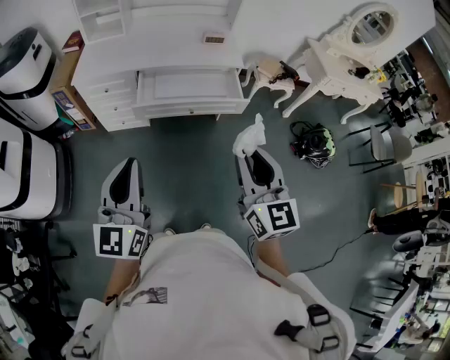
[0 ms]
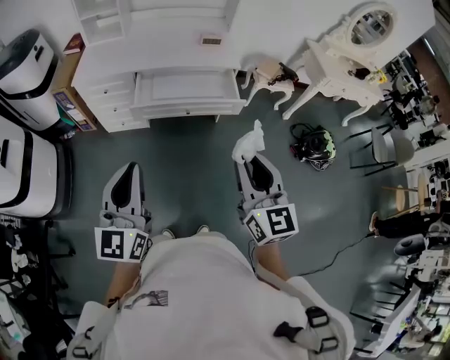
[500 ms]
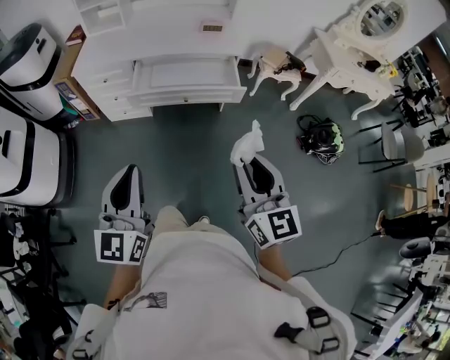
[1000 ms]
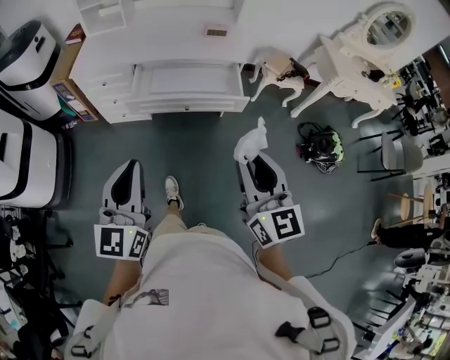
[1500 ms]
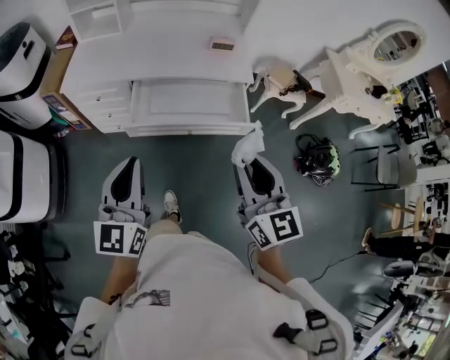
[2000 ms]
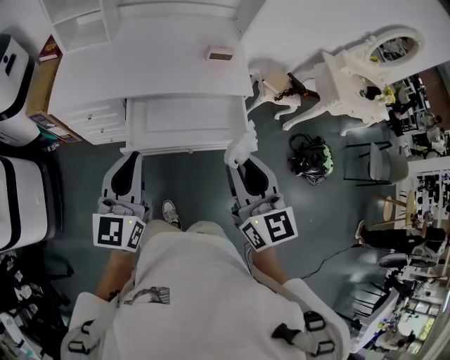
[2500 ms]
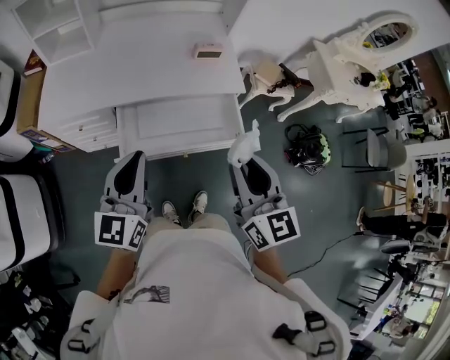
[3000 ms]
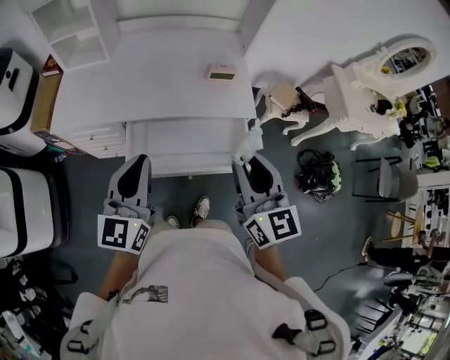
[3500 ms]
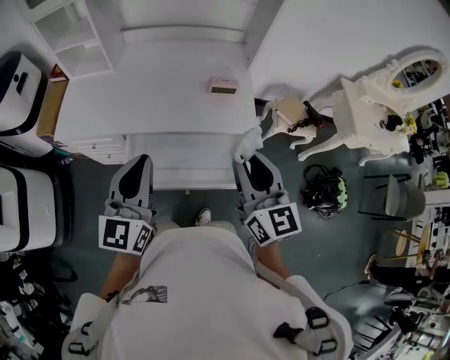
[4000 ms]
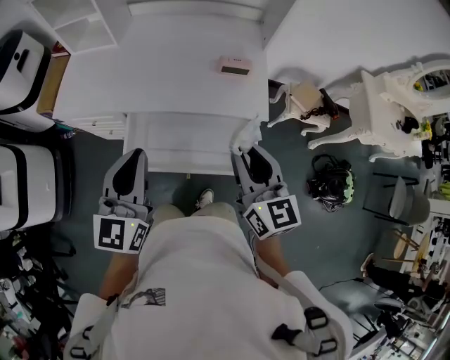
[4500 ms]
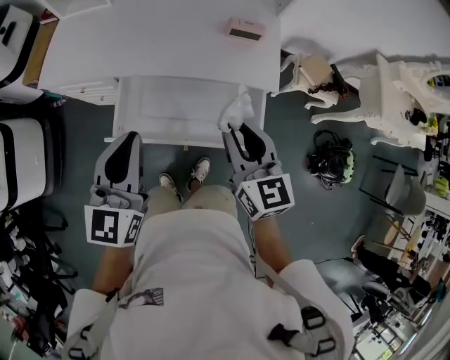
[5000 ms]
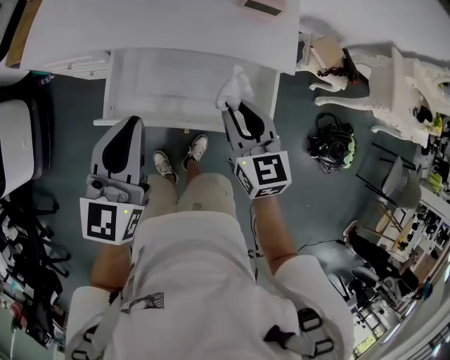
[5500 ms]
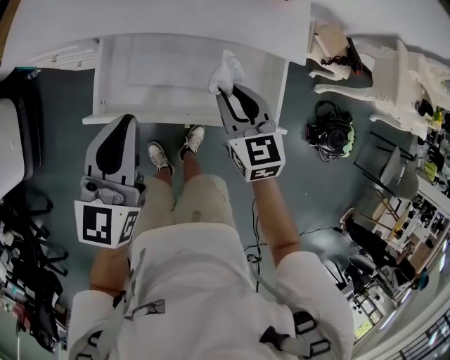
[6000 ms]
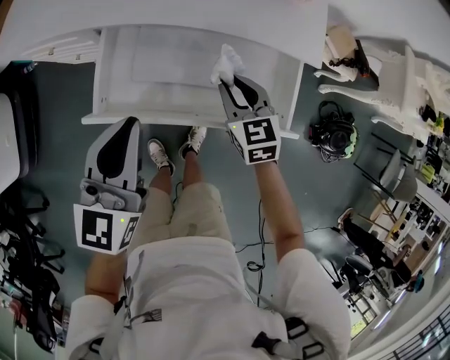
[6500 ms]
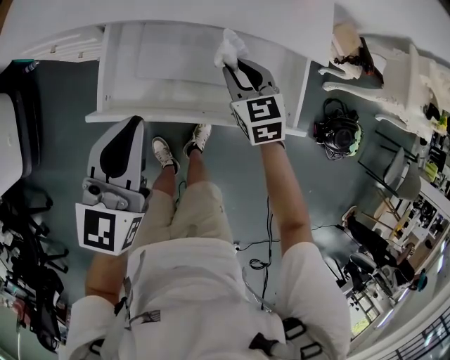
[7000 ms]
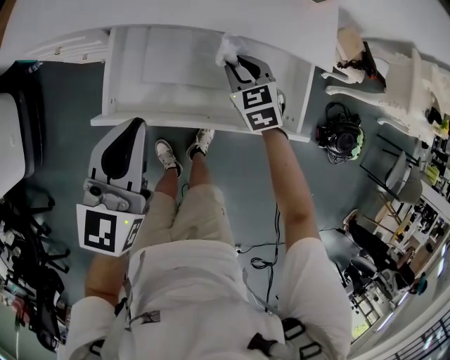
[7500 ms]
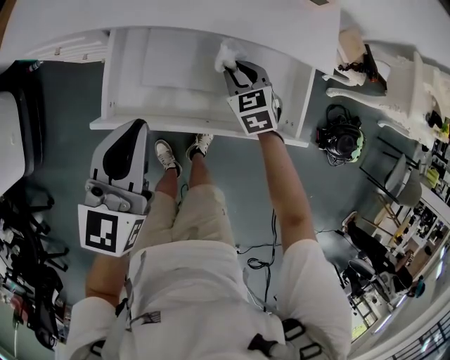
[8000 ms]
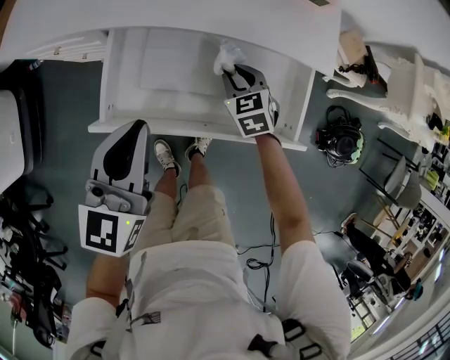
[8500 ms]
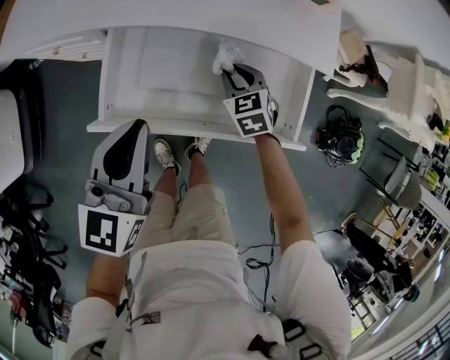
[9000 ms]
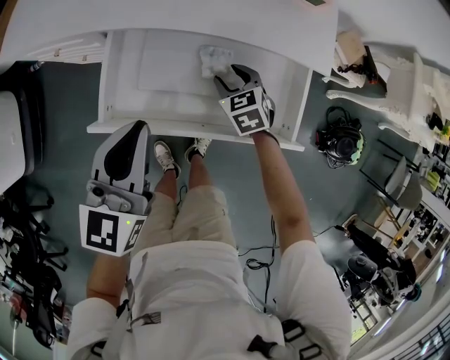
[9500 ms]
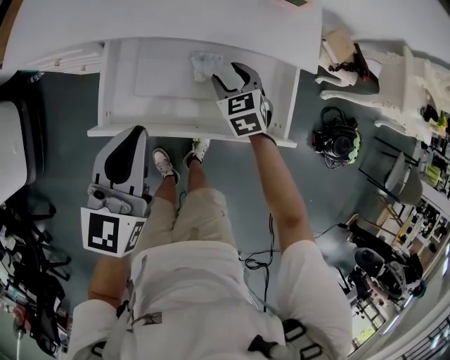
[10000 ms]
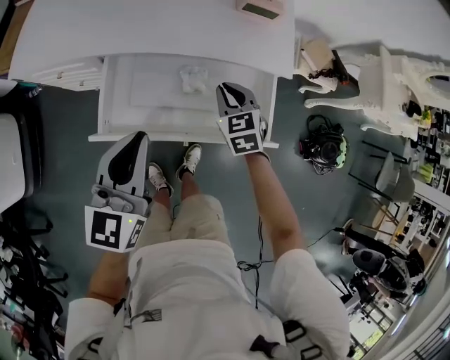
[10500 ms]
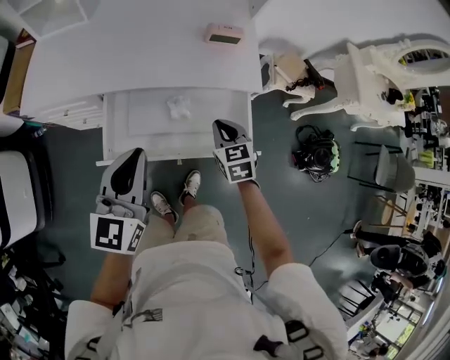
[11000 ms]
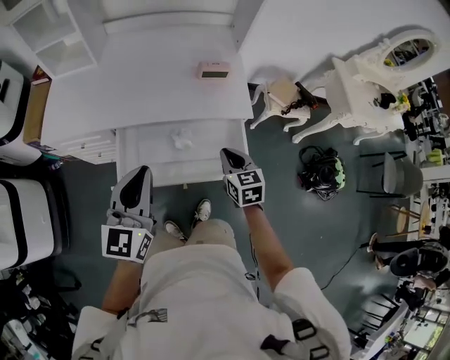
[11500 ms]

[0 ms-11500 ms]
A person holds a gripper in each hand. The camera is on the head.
0 ms to 2000 ms: Both grippers move forward, roughly 20 cm.
2000 ms to 4000 ms: The grippers both shift forward by about 30 cm.
4000 ms to 6000 ms: The right gripper heads downward, covering some 30 cm, and rotates roughly 30 degrees. The left gripper is displaced downward by about 20 cm.
6000 ms to 7500 ms: The right gripper is displaced downward and forward by approximately 15 cm, and rotates approximately 20 degrees. The left gripper changes place by roughly 5 cm.
7500 ms to 9500 ms: The right gripper opens its fingers.
9500 ms to 11500 ms: The right gripper moves upward, backward and to the right, approximately 30 cm, swivels about 30 degrees, and closes, while the left gripper is displaced upward by approximately 20 cm.

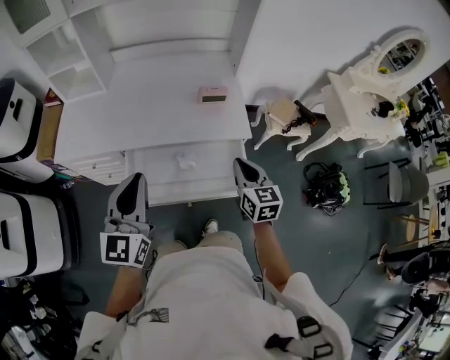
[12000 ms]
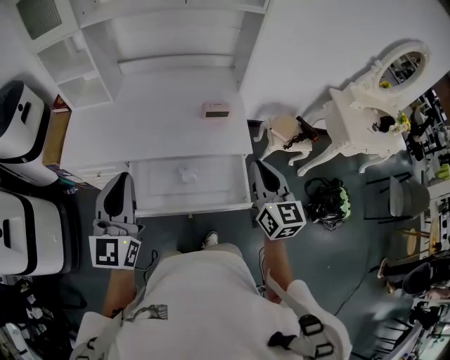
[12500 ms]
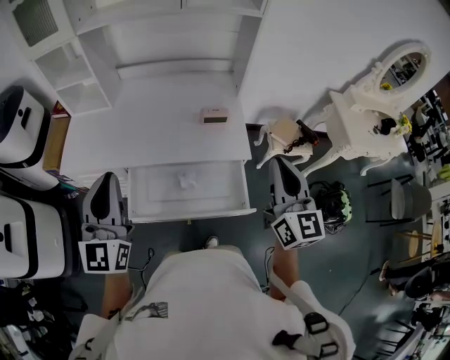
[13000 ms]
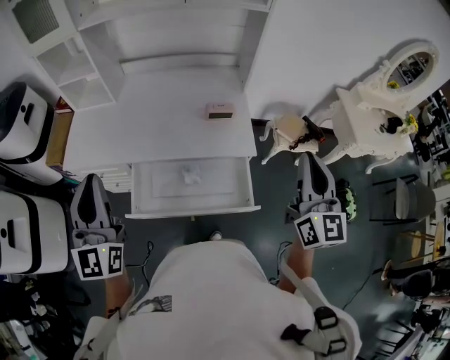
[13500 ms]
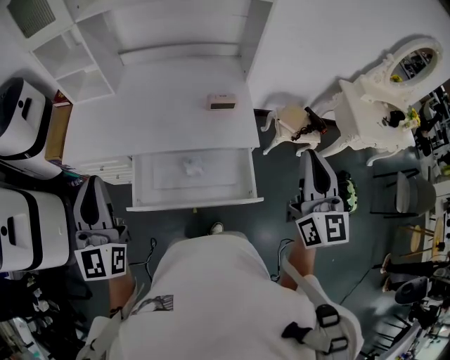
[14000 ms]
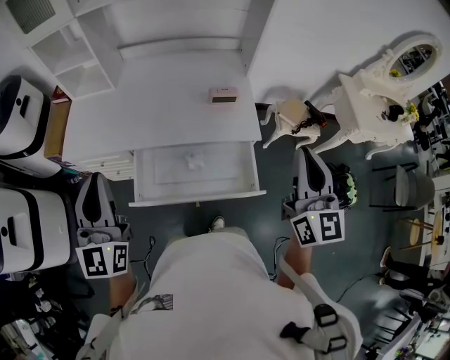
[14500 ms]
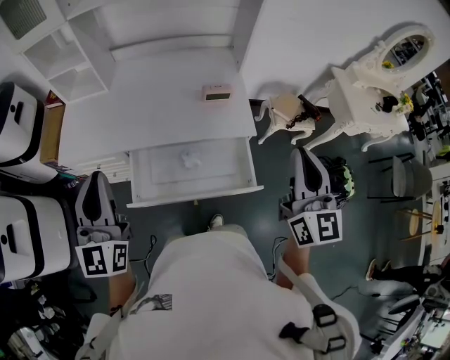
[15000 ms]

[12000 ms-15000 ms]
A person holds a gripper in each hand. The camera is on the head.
12000 ms to 13500 ms: The left gripper travels upward and to the left by about 15 cm, and rotates approximately 20 degrees, while the right gripper goes some 25 cm upward and to the right, and swivels roughly 30 degrees.
13500 ms to 15000 ms: The right gripper moves approximately 5 cm.

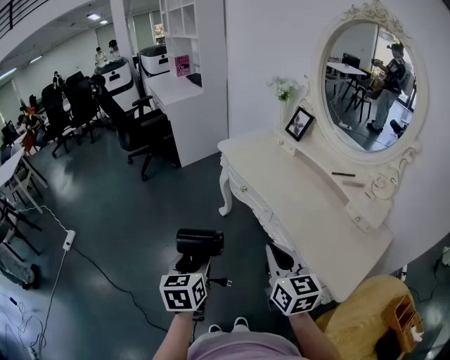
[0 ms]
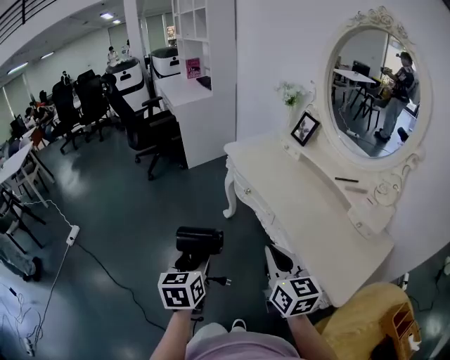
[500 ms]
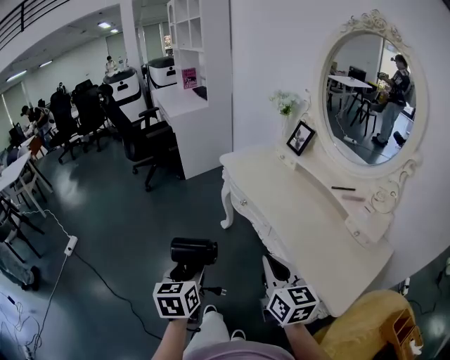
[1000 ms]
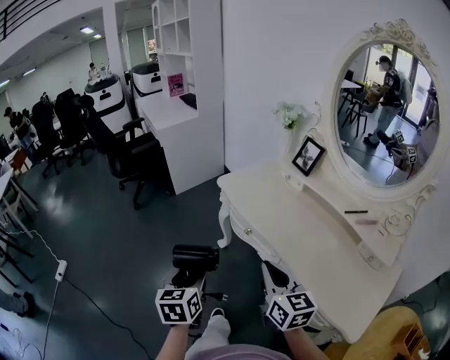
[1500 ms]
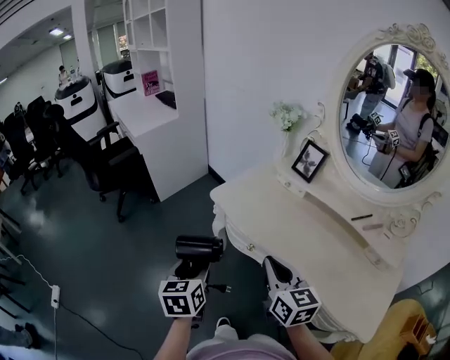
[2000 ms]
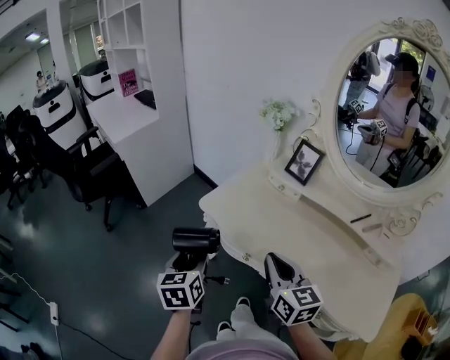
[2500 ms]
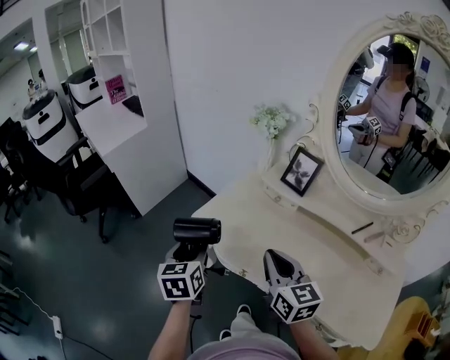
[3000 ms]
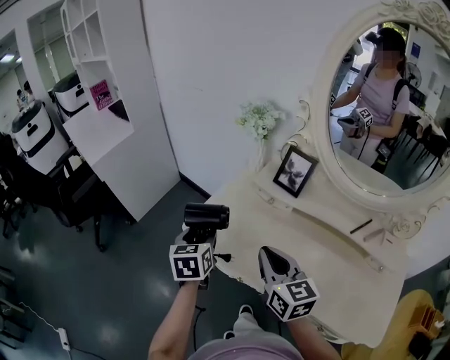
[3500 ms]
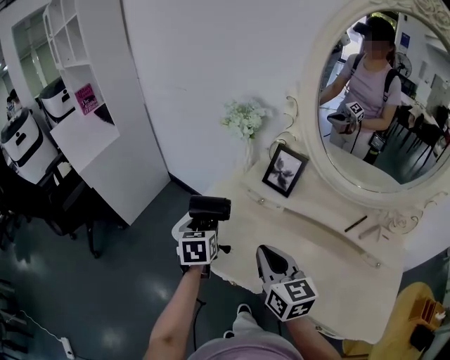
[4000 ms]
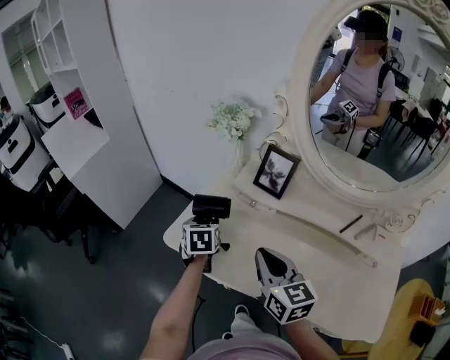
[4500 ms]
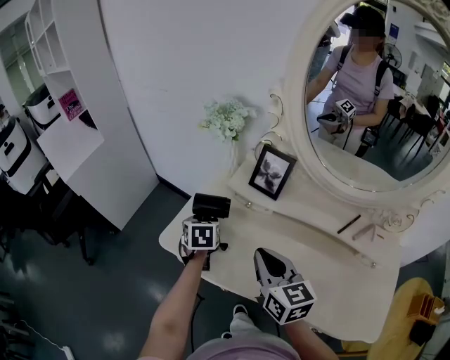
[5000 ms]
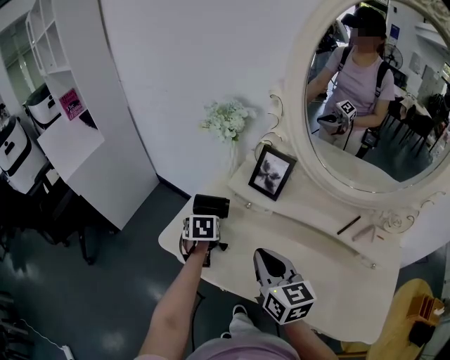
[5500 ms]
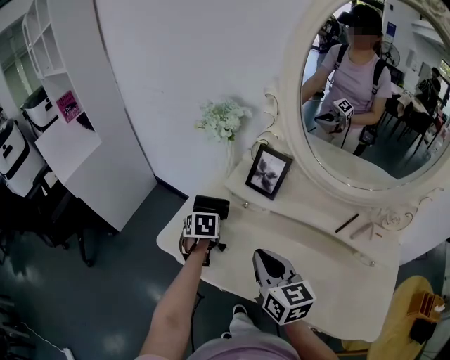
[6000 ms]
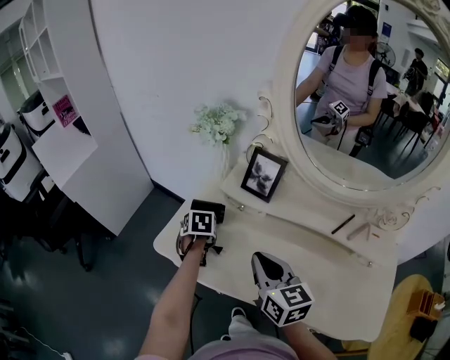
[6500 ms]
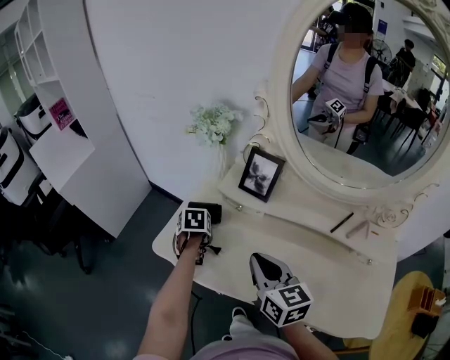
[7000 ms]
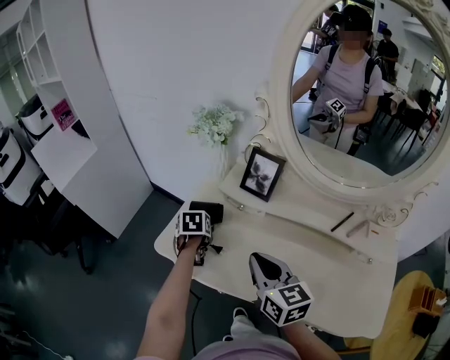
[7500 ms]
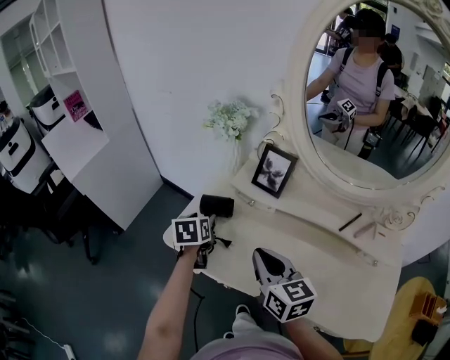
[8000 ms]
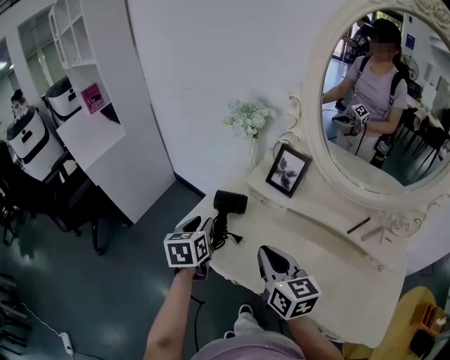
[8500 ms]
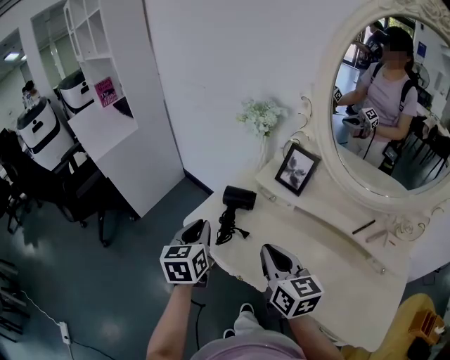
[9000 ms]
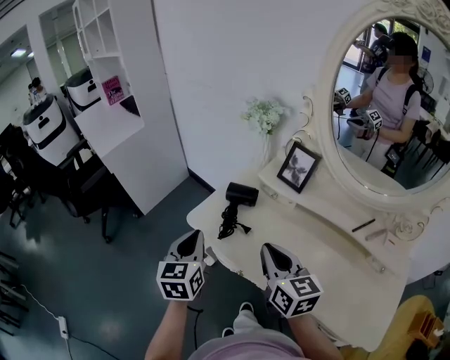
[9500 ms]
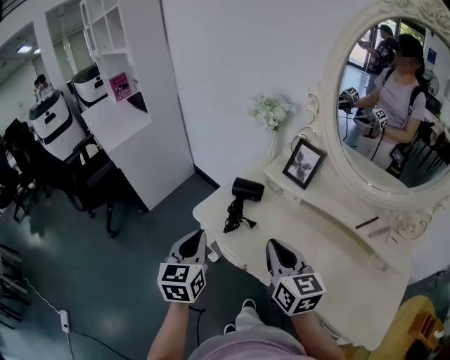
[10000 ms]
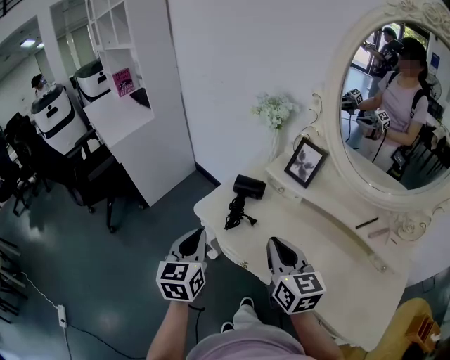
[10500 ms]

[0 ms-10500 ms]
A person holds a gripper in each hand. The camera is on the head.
0 ms to 2000 ms: The grippers both shift forward by about 30 cm.
2000 ms to 4000 ms: The left gripper heads forward, covering about 35 cm; the right gripper travels forward by about 20 cm.
4000 ms to 6500 ms: The left gripper is displaced downward, forward and to the right by some 15 cm, and swivels roughly 30 degrees.
6500 ms to 8500 ms: The left gripper heads upward, backward and to the left, covering about 15 cm, and angles its fingers upward, by about 30 degrees.
8500 ms to 10500 ms: The right gripper moves approximately 5 cm; the left gripper shifts approximately 15 cm backward and to the left, and closes its fingers.

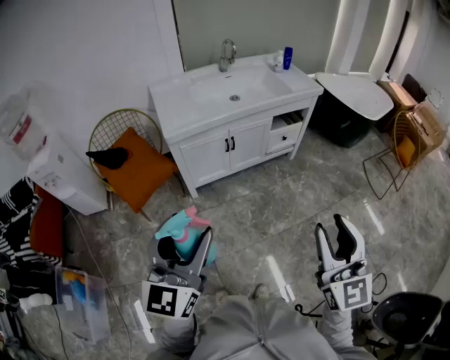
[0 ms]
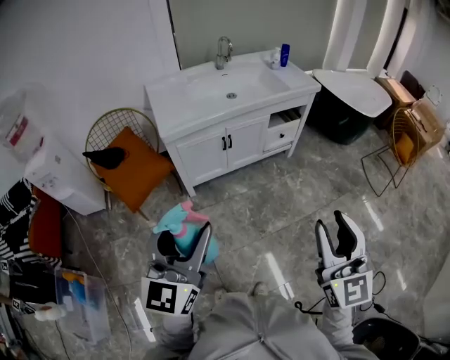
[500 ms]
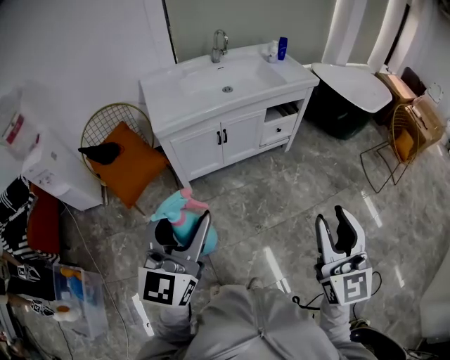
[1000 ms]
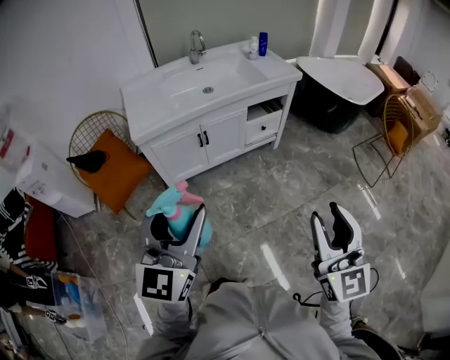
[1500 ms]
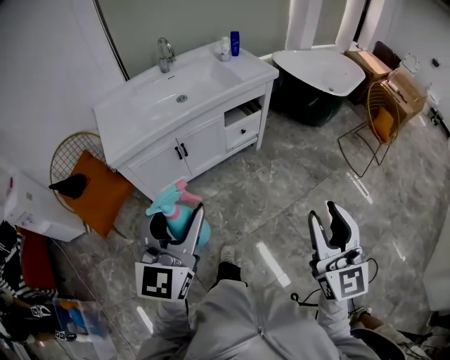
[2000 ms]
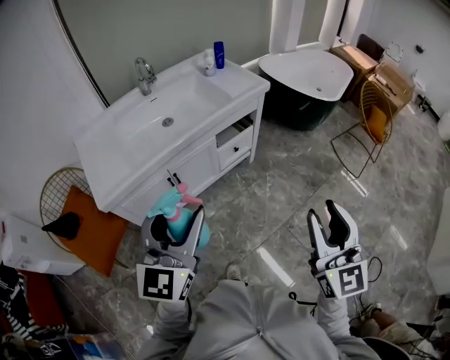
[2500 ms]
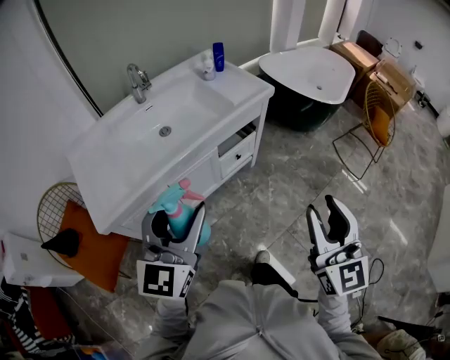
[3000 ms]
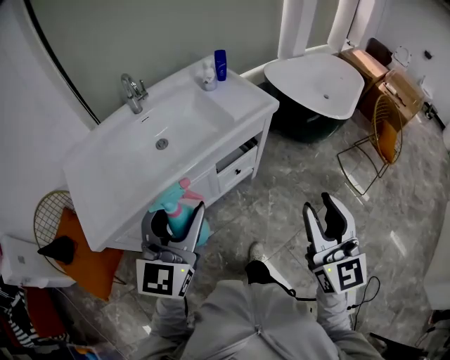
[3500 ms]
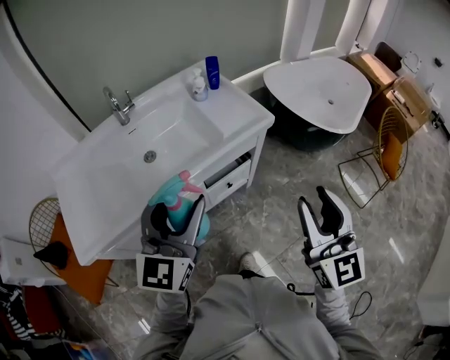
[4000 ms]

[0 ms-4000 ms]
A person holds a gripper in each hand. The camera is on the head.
0 ms to 2000 ms: Both grippers move to the right and forward, approximately 20 cm.
2000 ms to 4000 ms: Both grippers are carried forward, approximately 50 cm.
